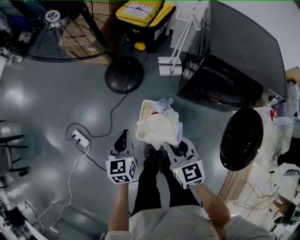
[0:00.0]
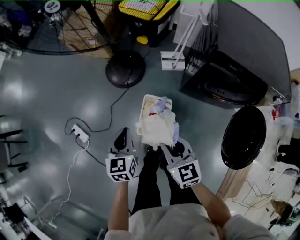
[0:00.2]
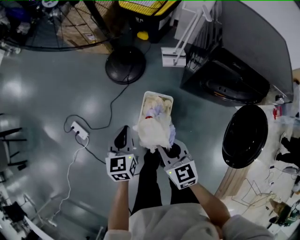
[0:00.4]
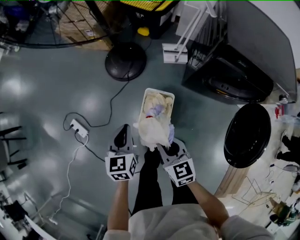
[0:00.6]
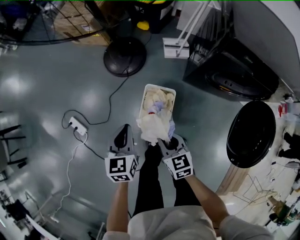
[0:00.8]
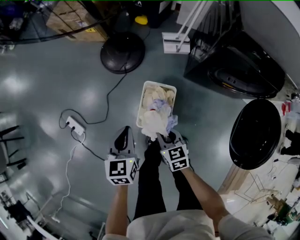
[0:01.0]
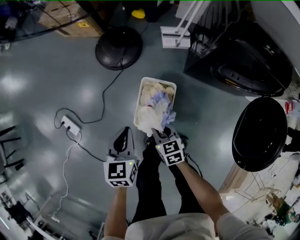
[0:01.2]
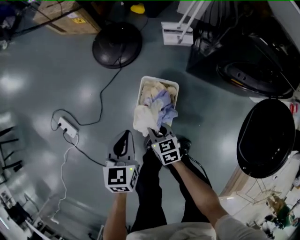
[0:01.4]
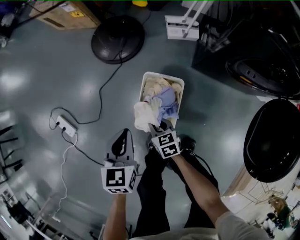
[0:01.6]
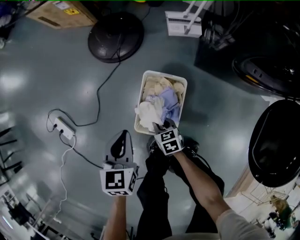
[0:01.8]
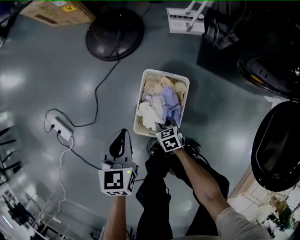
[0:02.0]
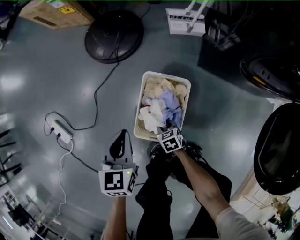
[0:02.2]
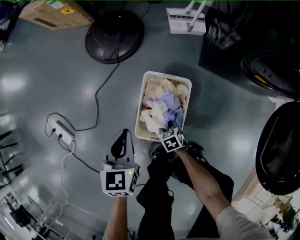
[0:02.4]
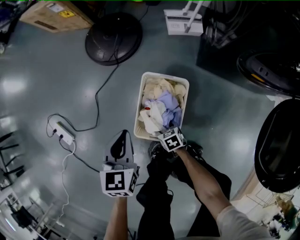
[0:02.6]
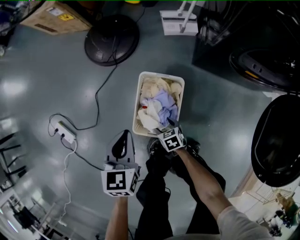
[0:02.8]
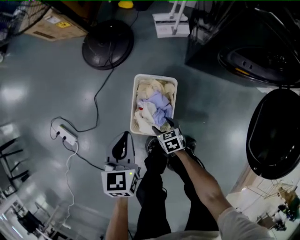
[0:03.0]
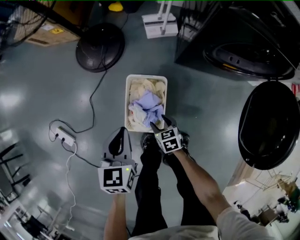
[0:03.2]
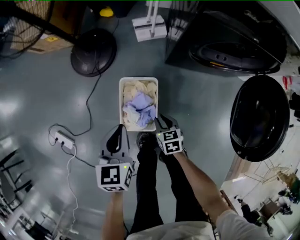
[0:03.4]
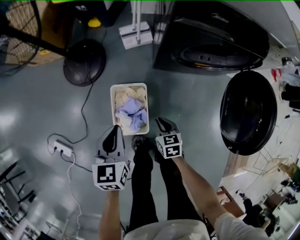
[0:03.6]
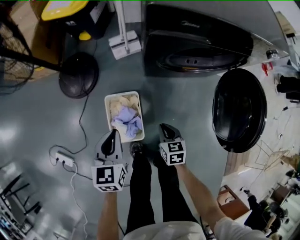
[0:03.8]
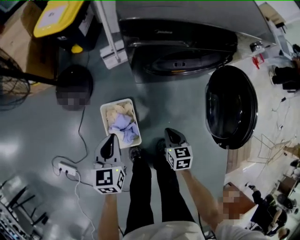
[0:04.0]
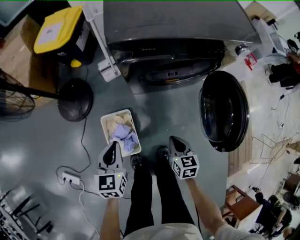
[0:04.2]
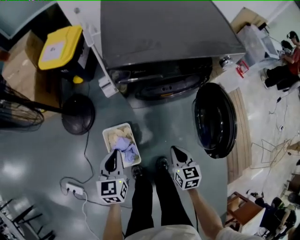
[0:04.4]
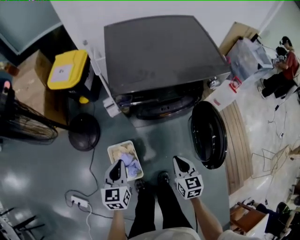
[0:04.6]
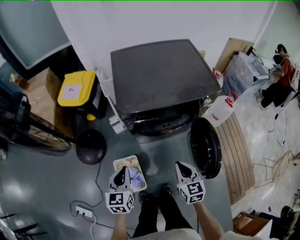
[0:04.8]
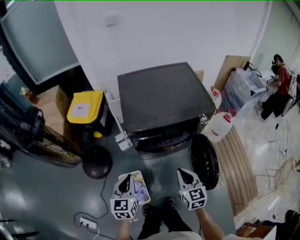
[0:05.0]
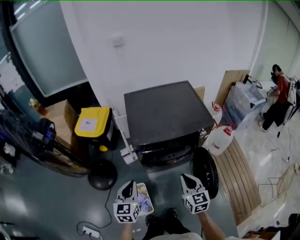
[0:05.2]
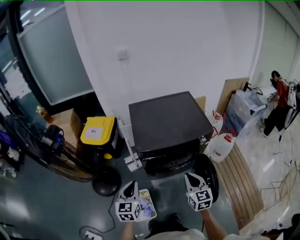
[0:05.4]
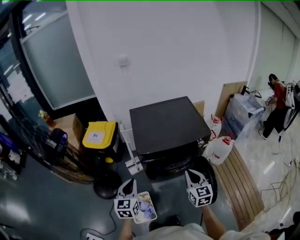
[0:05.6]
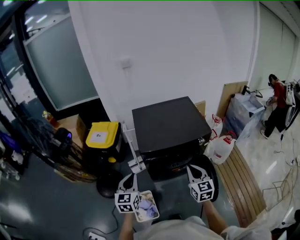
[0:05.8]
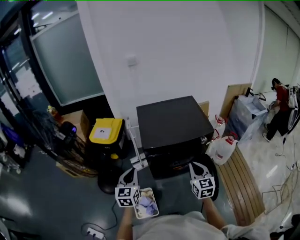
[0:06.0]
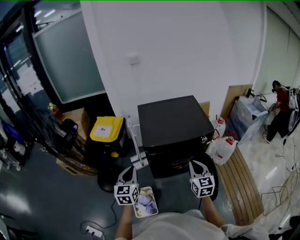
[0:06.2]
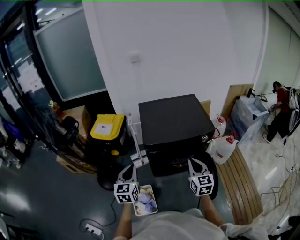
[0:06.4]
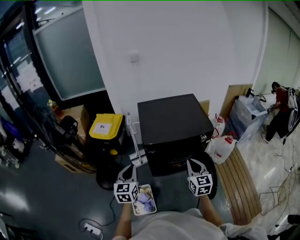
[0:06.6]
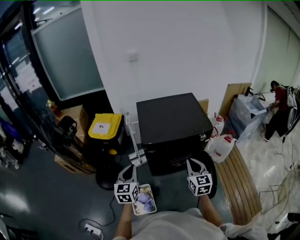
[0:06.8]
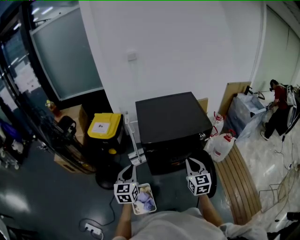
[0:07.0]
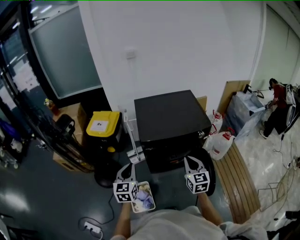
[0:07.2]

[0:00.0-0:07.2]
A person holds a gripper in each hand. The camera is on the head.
0:00.0 to 0:01.4: The right gripper goes about 40 cm downward, and changes its angle by some 20 degrees. Meanwhile the left gripper is displaced downward by roughly 20 cm.
0:01.4 to 0:02.8: The left gripper travels downward by about 10 cm; the right gripper moves downward, some 25 cm, and opens up.
0:02.8 to 0:04.4: The right gripper travels upward by some 50 cm, turns by approximately 50 degrees, and closes. Meanwhile the left gripper moves upward, roughly 25 cm, and rotates approximately 20 degrees.
0:04.4 to 0:05.8: The grippers both shift upward by approximately 40 cm. The right gripper rotates some 30 degrees.
0:05.8 to 0:07.2: The grippers make only small movements.

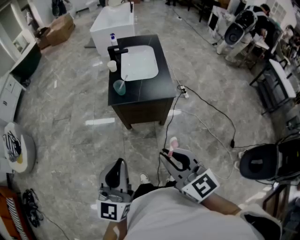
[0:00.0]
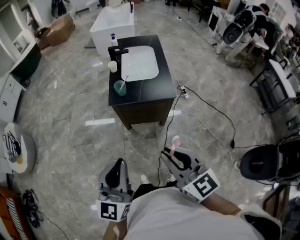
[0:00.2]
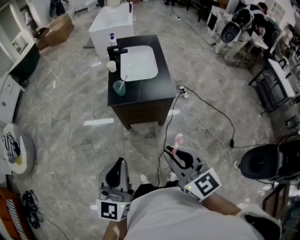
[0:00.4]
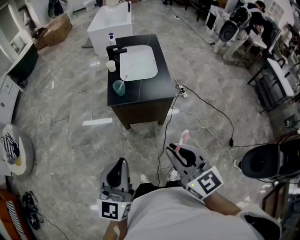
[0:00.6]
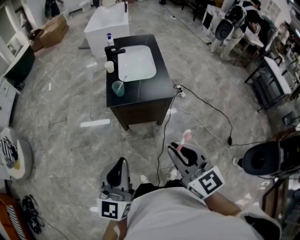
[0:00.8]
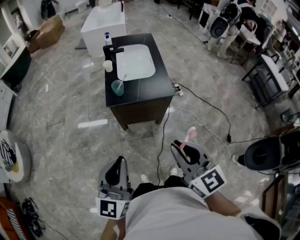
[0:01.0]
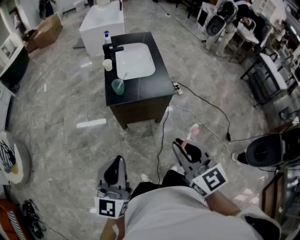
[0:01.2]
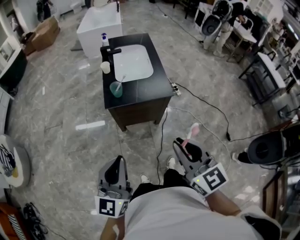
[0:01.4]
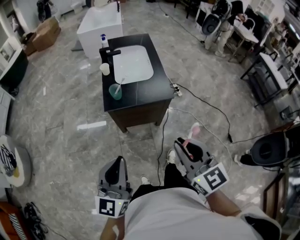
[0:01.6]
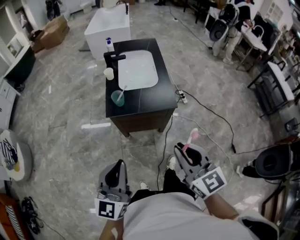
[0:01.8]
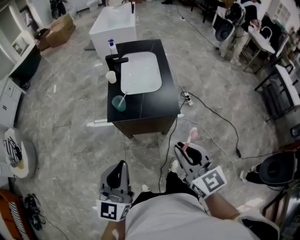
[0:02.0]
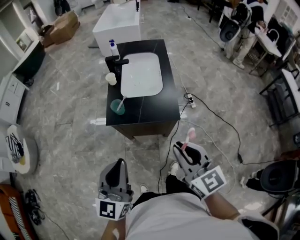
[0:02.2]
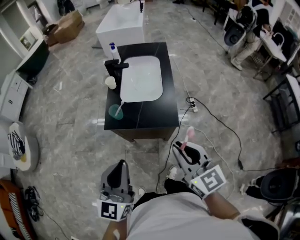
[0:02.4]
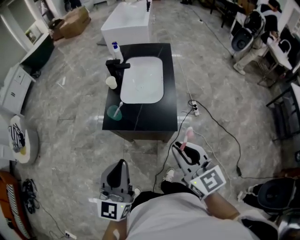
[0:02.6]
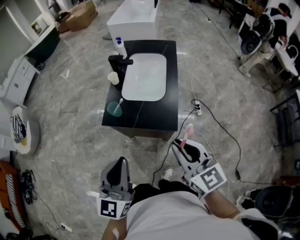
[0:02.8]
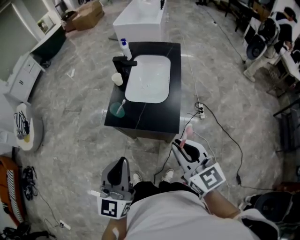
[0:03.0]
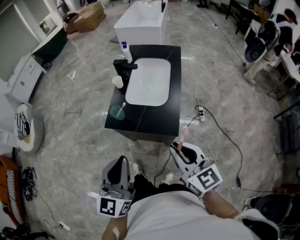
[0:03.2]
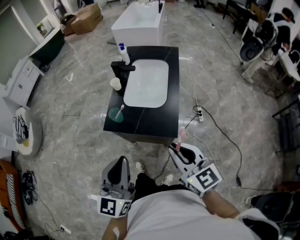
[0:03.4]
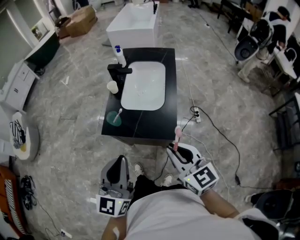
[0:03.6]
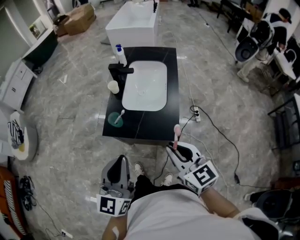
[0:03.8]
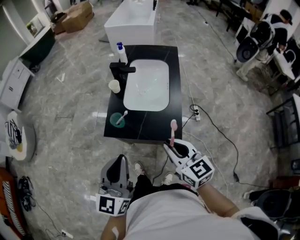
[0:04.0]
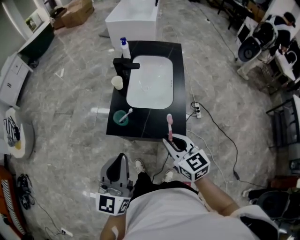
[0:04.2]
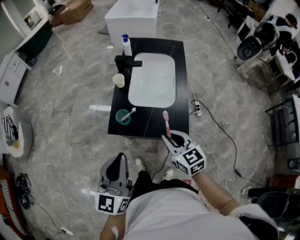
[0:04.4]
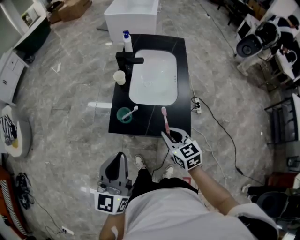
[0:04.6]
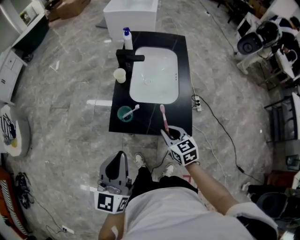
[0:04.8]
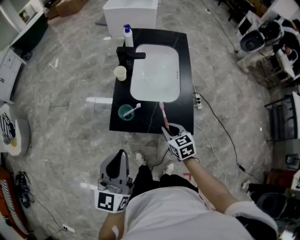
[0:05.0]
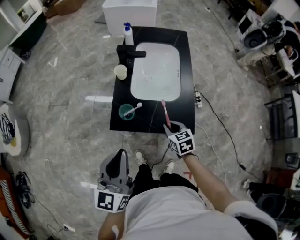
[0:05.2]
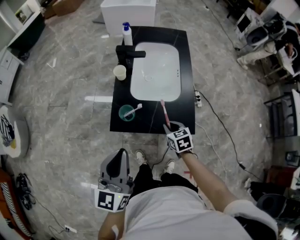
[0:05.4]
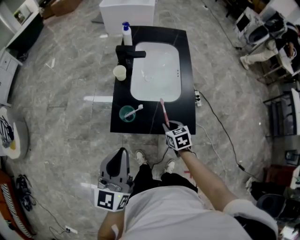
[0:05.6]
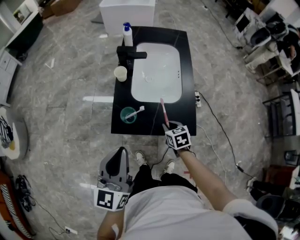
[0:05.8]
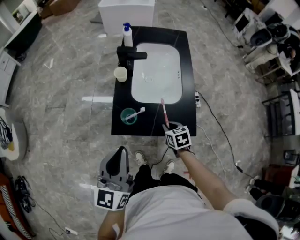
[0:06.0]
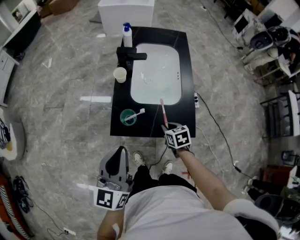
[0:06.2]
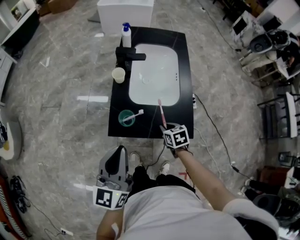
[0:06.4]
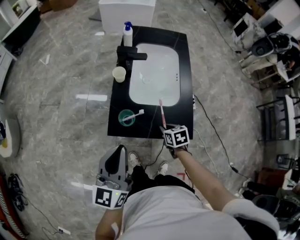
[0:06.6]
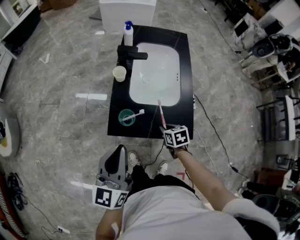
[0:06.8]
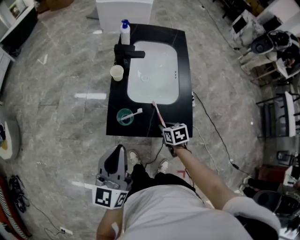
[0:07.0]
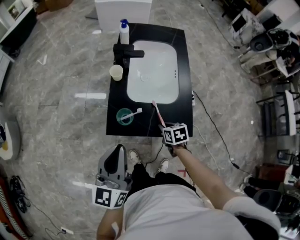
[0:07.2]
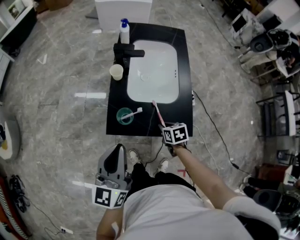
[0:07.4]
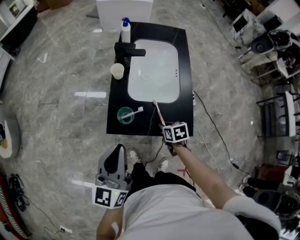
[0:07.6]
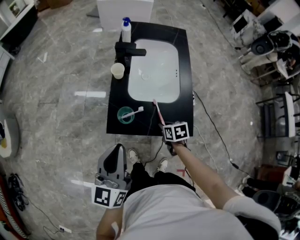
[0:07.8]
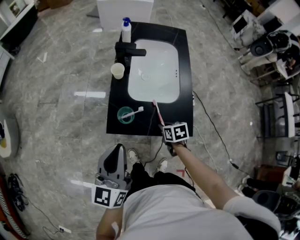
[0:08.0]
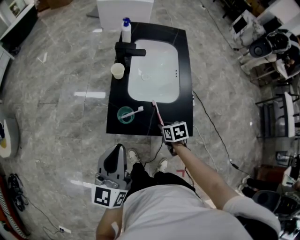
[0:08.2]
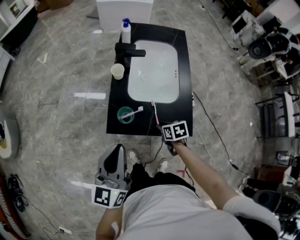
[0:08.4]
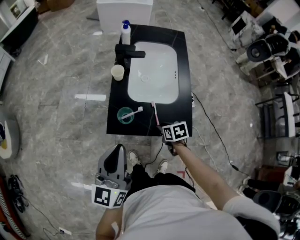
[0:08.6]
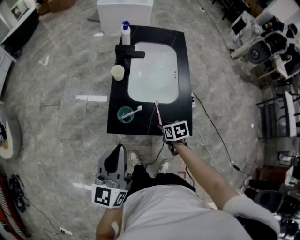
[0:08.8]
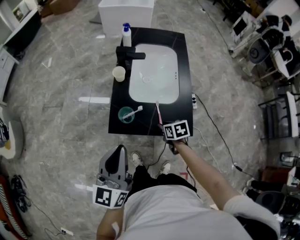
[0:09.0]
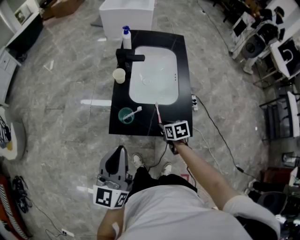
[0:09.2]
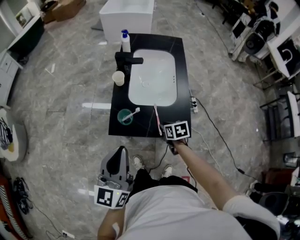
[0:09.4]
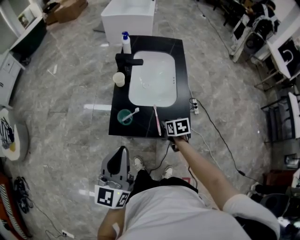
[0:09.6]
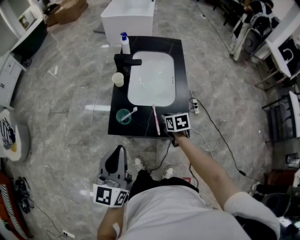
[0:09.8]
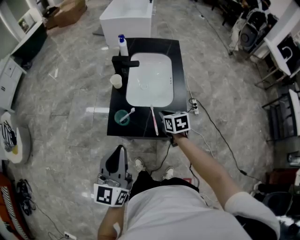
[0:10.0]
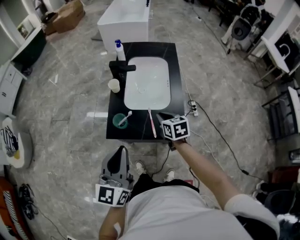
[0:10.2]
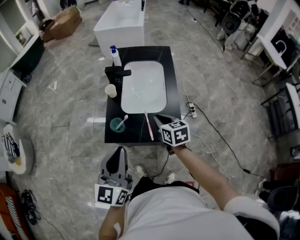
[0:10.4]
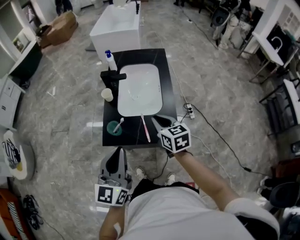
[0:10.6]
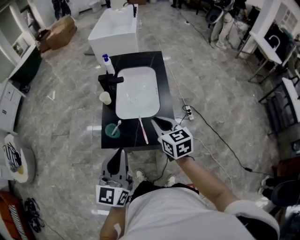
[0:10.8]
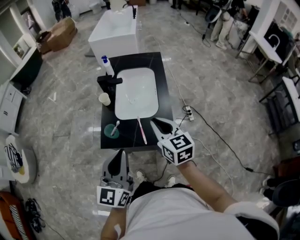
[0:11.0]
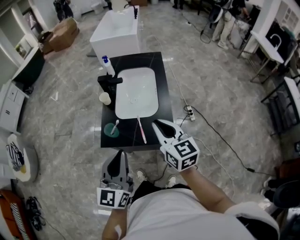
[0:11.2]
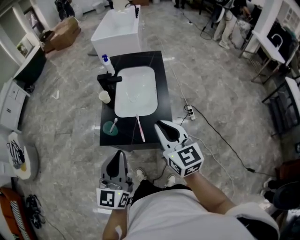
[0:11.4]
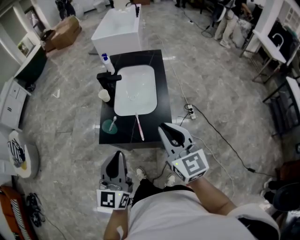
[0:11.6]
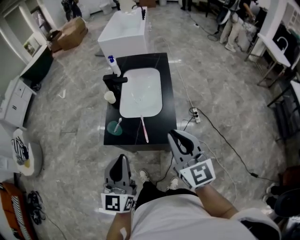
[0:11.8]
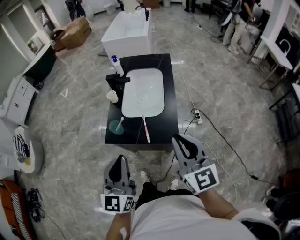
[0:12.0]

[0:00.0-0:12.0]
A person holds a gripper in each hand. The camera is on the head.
0:00.0 to 0:01.6: The two grippers go approximately 5 cm forward.
0:01.6 to 0:03.0: The left gripper shifts about 20 cm to the right and forward, and changes its angle by some 20 degrees. Meanwhile the right gripper moves forward and to the right, roughly 25 cm, and swivels about 20 degrees.
0:03.0 to 0:04.4: The left gripper is displaced forward and to the left by about 15 cm. Meanwhile the right gripper is displaced forward, downward and to the left by roughly 20 cm.
0:04.4 to 0:06.0: The right gripper goes some 20 cm downward, and changes its angle by some 30 degrees. The left gripper moves forward, about 5 cm.
0:06.0 to 0:09.0: There are only small adjustments of the grippers.
0:09.0 to 0:10.4: The right gripper heads upward, covering approximately 15 cm, and rotates about 30 degrees, while the left gripper shifts some 5 cm to the right.
0:10.4 to 0:12.0: The left gripper goes some 5 cm backward, while the right gripper goes roughly 25 cm upward and backward, and tilts its fingers some 30 degrees upward.

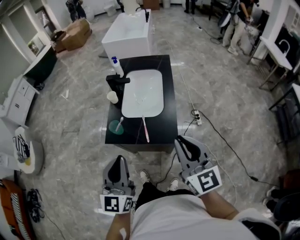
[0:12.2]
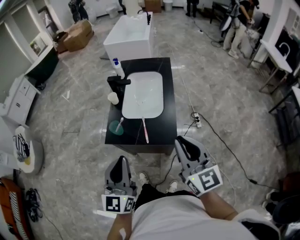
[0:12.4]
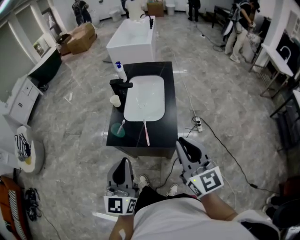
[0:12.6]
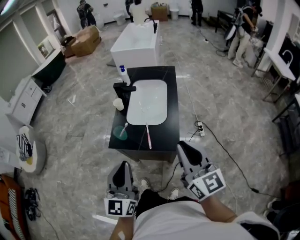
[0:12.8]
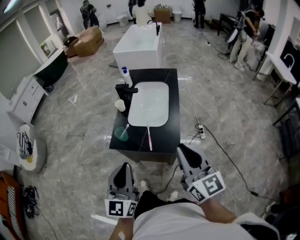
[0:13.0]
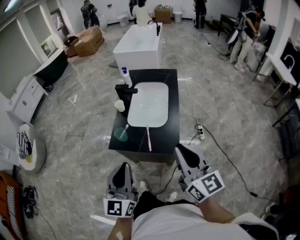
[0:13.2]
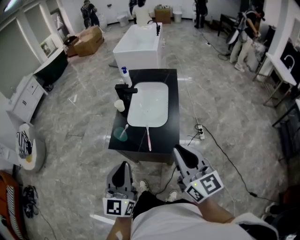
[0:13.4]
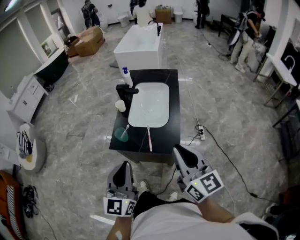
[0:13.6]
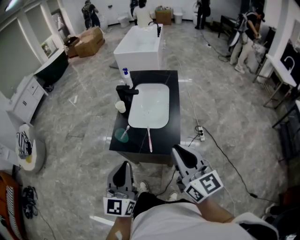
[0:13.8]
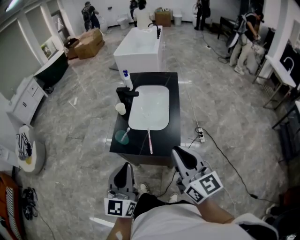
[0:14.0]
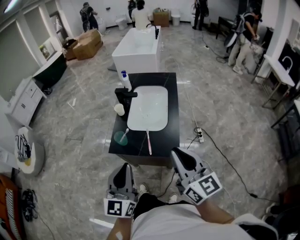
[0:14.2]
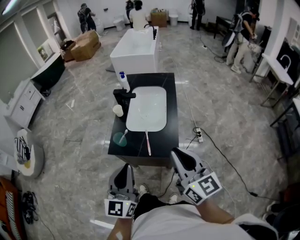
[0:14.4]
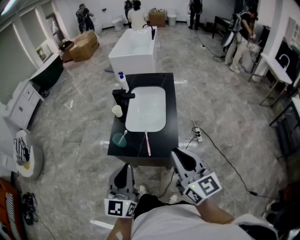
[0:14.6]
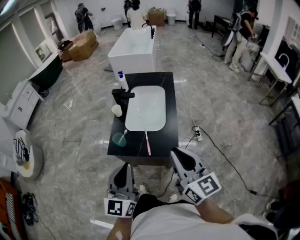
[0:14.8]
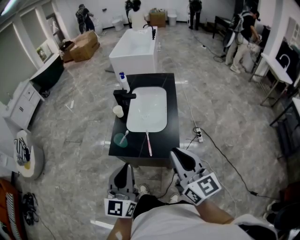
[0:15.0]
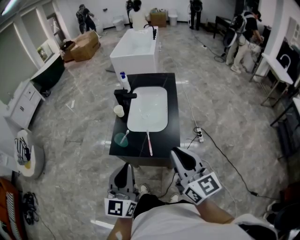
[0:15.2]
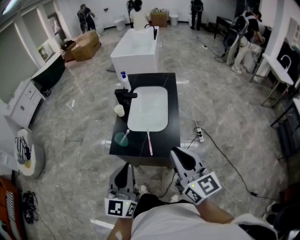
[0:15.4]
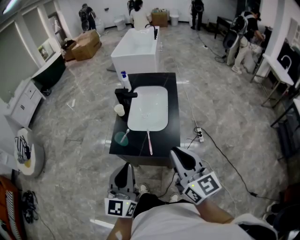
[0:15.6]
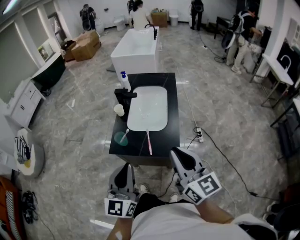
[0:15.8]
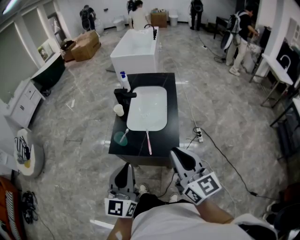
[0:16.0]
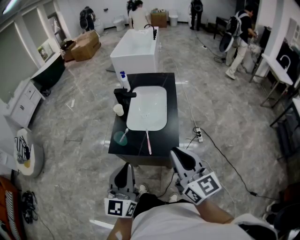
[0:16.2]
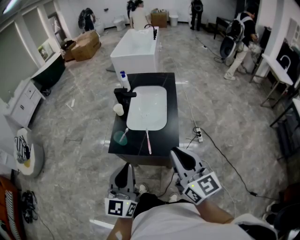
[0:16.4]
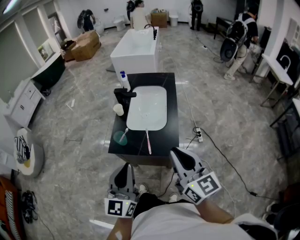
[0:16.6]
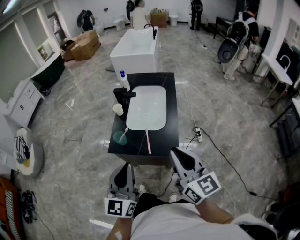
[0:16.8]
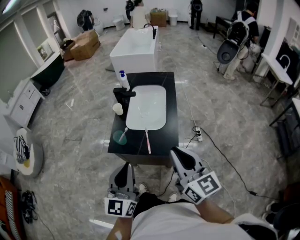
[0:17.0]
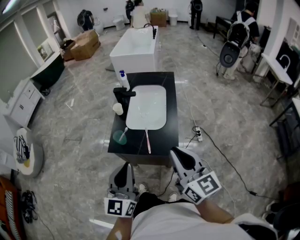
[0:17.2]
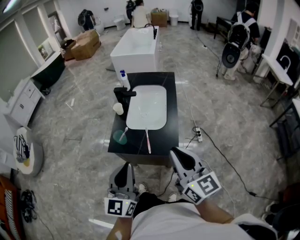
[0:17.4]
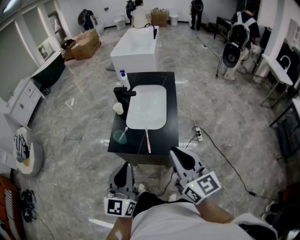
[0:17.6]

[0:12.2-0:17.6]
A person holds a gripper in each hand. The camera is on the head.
0:12.2 to 0:15.0: The grippers move only a little.
0:15.0 to 0:16.2: Both grippers stay put.
0:16.2 to 0:17.6: Both grippers stay put.
